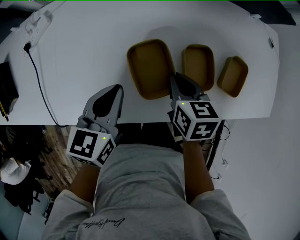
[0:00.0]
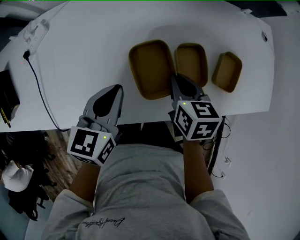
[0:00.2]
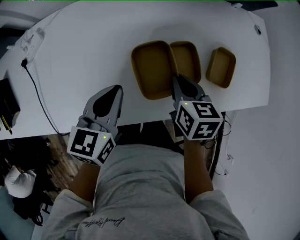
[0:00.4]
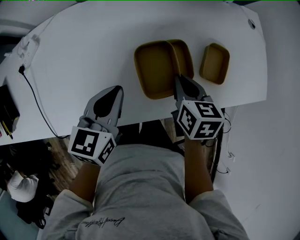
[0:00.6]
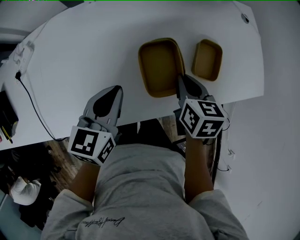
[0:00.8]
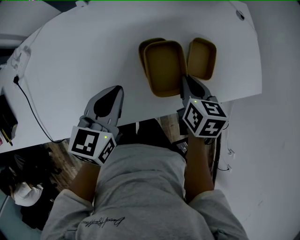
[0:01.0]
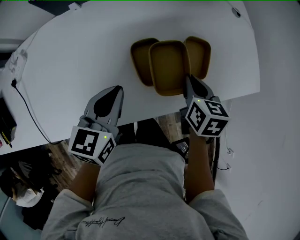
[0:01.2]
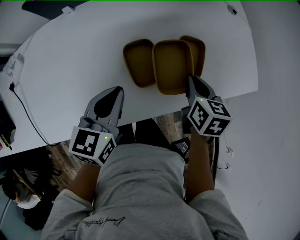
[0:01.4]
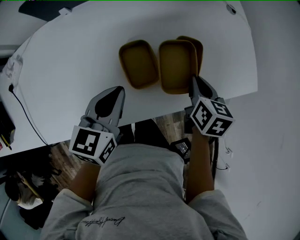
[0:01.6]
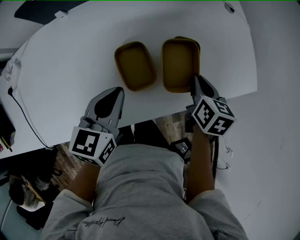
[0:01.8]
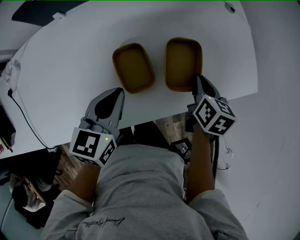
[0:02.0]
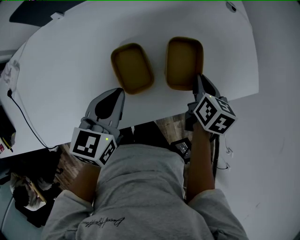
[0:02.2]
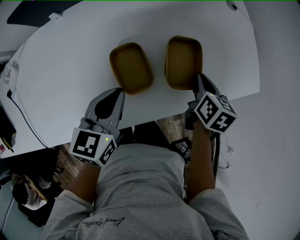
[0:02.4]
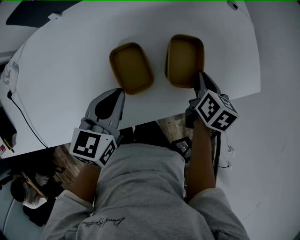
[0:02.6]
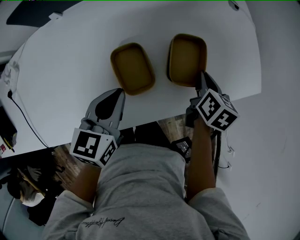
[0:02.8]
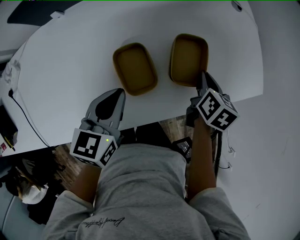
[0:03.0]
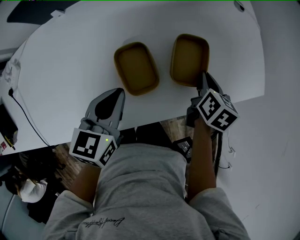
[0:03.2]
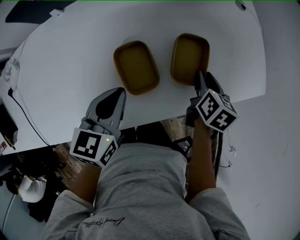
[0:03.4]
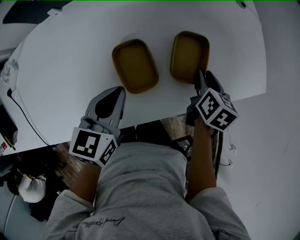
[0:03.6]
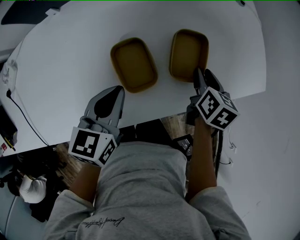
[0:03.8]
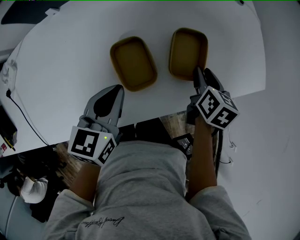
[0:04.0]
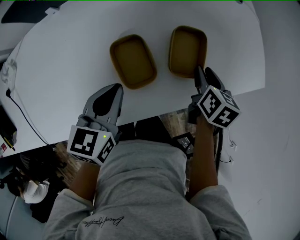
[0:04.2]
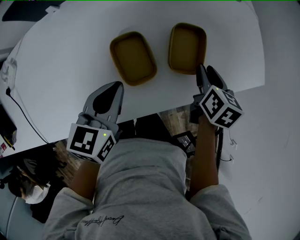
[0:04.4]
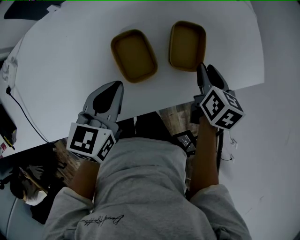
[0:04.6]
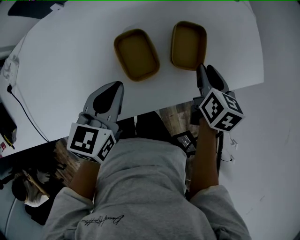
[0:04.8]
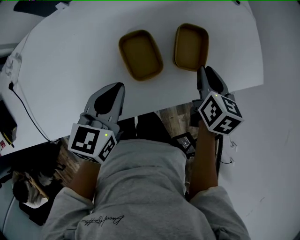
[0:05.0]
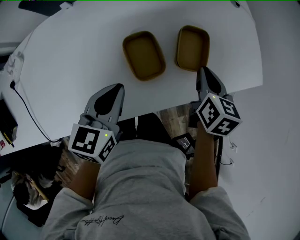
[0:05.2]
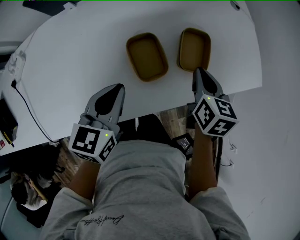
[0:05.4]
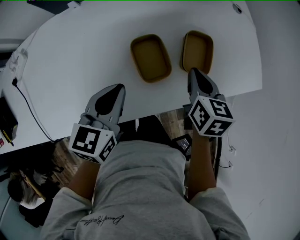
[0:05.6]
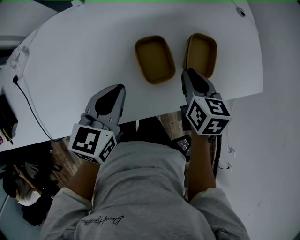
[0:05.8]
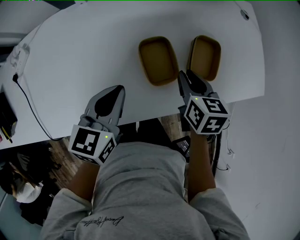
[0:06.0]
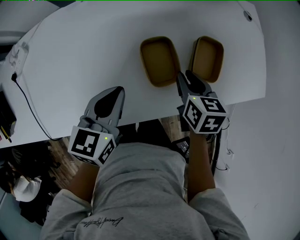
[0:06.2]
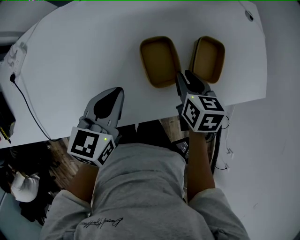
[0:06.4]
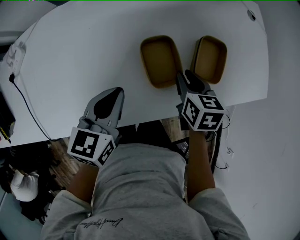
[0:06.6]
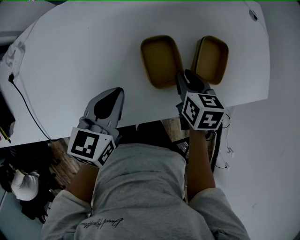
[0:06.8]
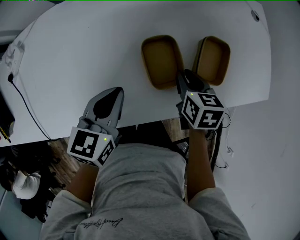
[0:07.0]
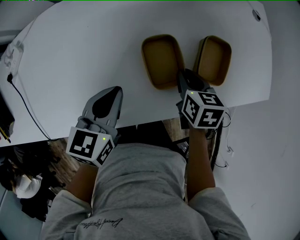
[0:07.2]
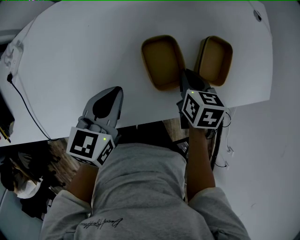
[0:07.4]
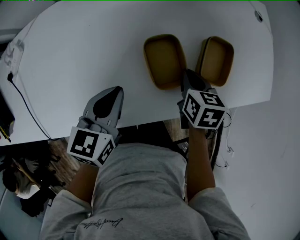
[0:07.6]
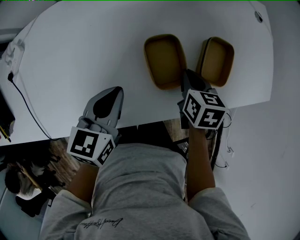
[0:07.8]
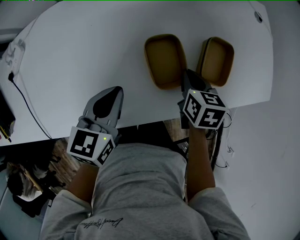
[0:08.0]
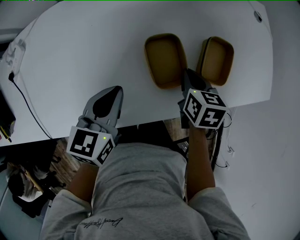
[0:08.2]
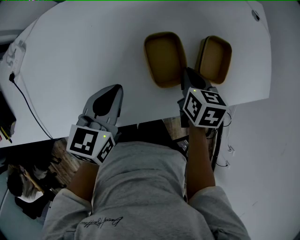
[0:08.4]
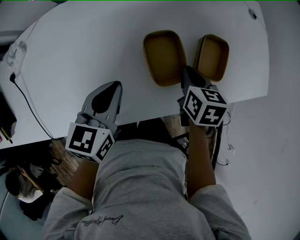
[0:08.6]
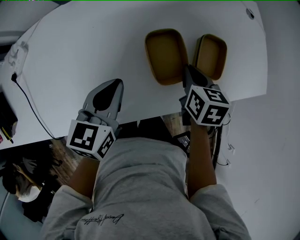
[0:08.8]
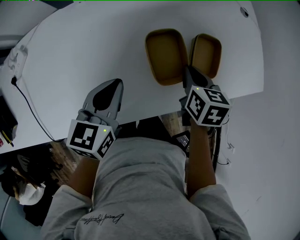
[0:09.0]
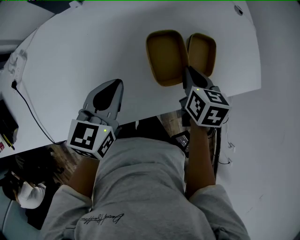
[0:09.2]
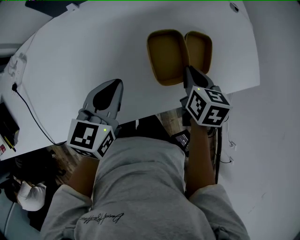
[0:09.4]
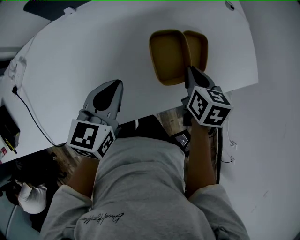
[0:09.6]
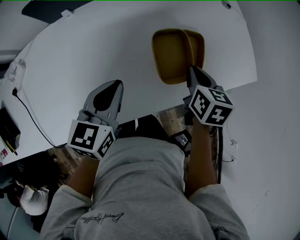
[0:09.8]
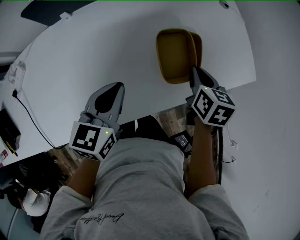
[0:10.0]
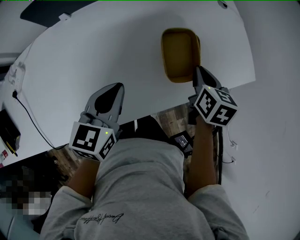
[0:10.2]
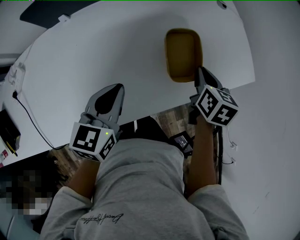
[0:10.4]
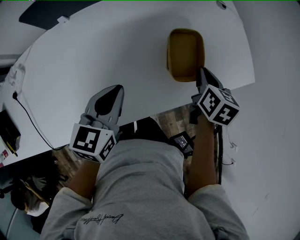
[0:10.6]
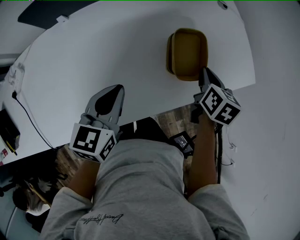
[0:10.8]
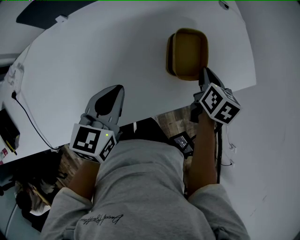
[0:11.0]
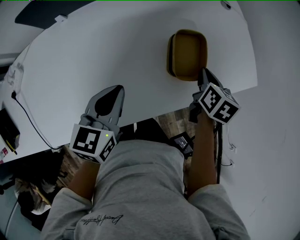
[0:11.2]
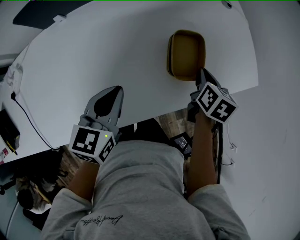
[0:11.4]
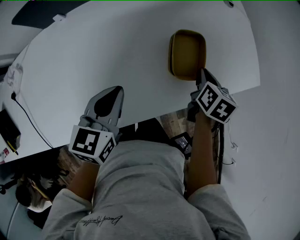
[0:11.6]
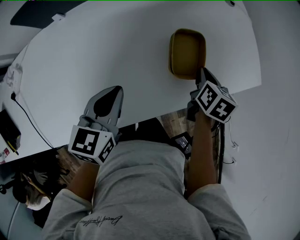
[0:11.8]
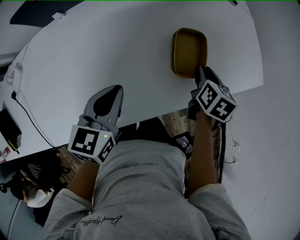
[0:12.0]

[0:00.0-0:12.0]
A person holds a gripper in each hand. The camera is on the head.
0:00.0 to 0:01.6: Both grippers travel together to the right, roughly 25 cm. The right gripper rotates some 30 degrees.
0:01.6 to 0:03.0: The right gripper ends up some 5 cm from where it was.
0:03.0 to 0:04.4: The right gripper opens up.
0:04.4 to 0:06.0: The right gripper shifts about 15 cm to the left, and closes, then reopens. Meanwhile the left gripper heads to the left, covering roughly 5 cm.
0:06.0 to 0:07.6: The right gripper travels downward by about 5 cm.
0:07.6 to 0:09.0: The right gripper heads upward, covering roughly 5 cm.
0:09.0 to 0:10.4: The right gripper heads to the right, covering some 10 cm. The left gripper moves to the right, some 5 cm.
0:10.4 to 0:12.0: The right gripper heads downward, covering some 5 cm, and opens its fingers.

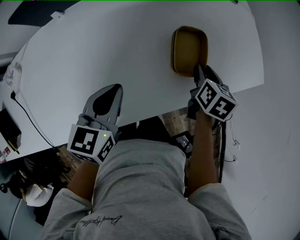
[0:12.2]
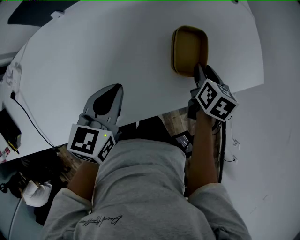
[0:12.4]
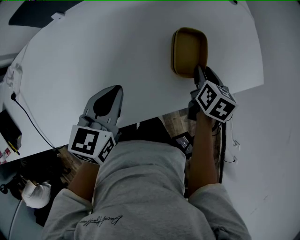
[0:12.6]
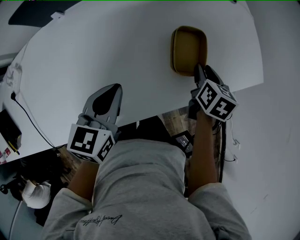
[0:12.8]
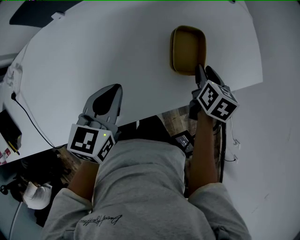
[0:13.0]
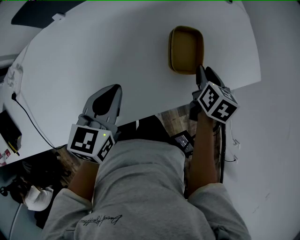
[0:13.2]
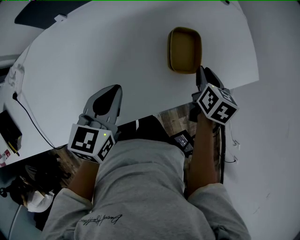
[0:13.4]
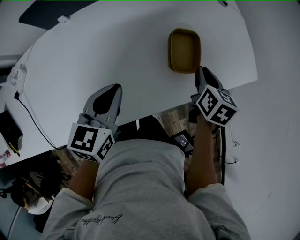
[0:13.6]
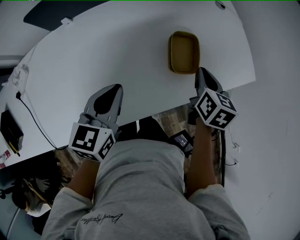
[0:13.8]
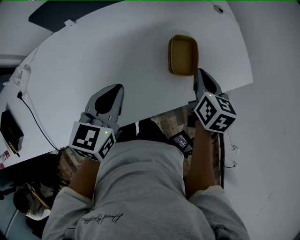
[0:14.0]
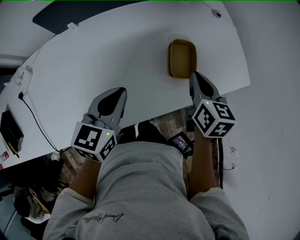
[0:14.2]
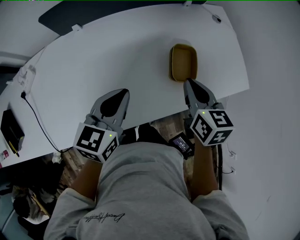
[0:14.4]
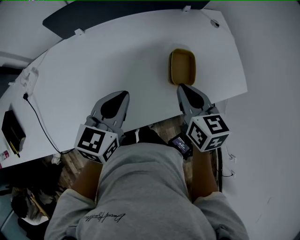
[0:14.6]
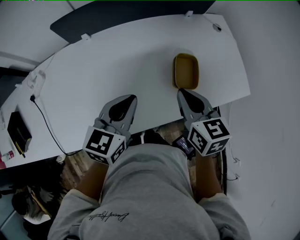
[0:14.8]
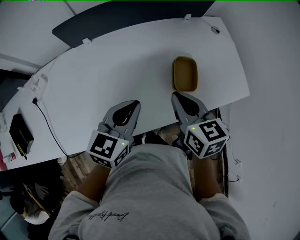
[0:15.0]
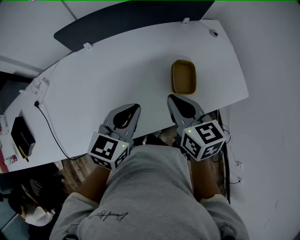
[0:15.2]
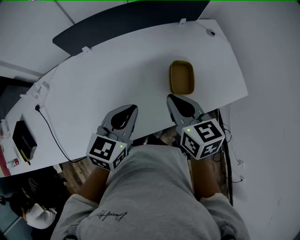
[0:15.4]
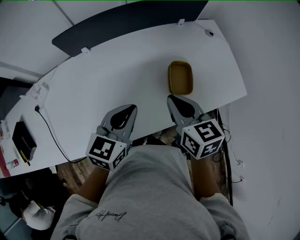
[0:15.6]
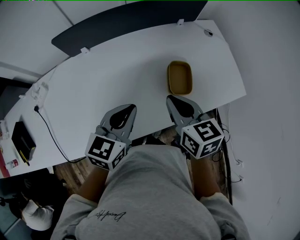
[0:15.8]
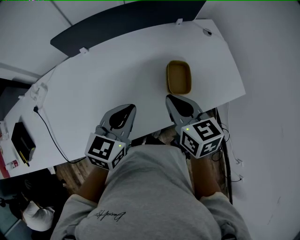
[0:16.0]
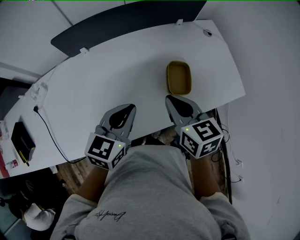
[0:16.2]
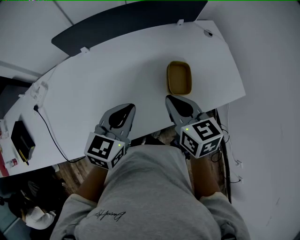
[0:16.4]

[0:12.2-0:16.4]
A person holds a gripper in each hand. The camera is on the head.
0:12.2 to 0:13.6: The right gripper heads upward, covering roughly 5 cm.
0:13.6 to 0:15.0: The left gripper is displaced upward by approximately 5 cm. Meanwhile the right gripper heads to the left, upward and backward, covering roughly 20 cm, and swivels about 30 degrees.
0:15.0 to 0:16.4: There are only small adjustments of the grippers.

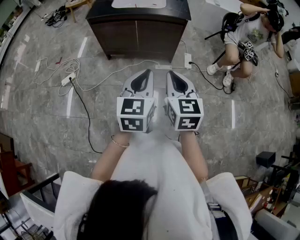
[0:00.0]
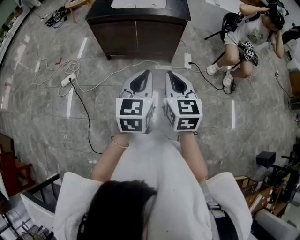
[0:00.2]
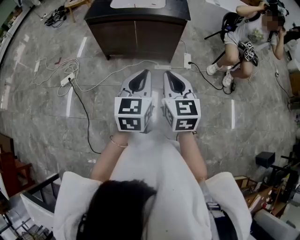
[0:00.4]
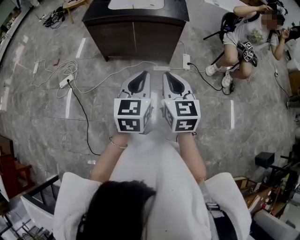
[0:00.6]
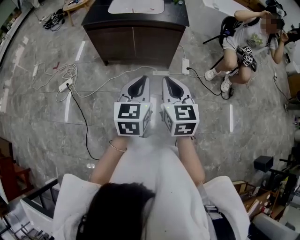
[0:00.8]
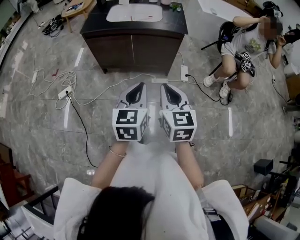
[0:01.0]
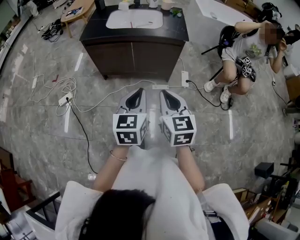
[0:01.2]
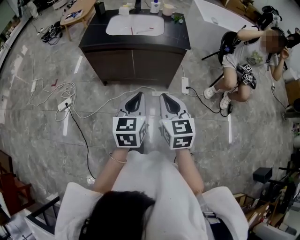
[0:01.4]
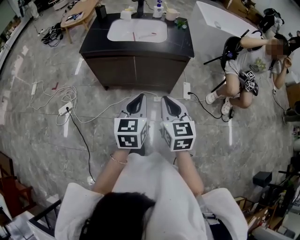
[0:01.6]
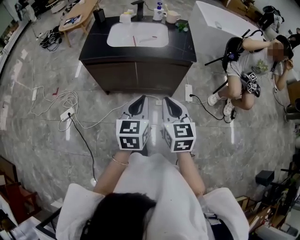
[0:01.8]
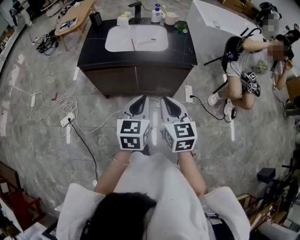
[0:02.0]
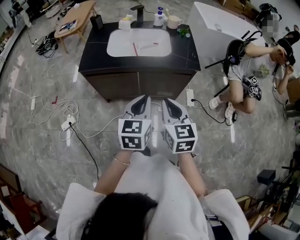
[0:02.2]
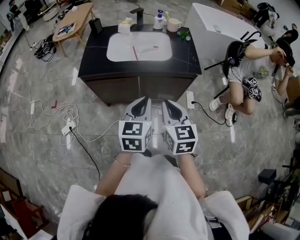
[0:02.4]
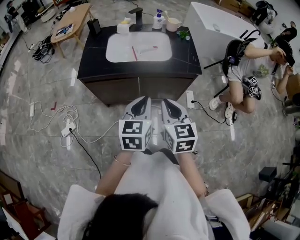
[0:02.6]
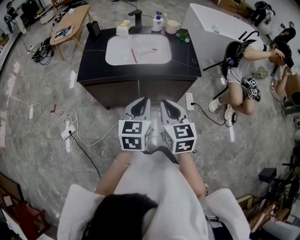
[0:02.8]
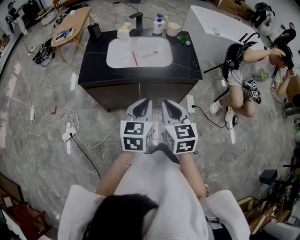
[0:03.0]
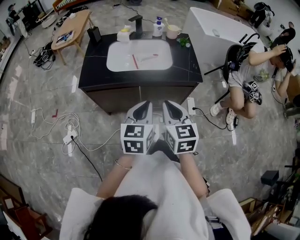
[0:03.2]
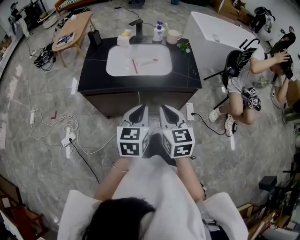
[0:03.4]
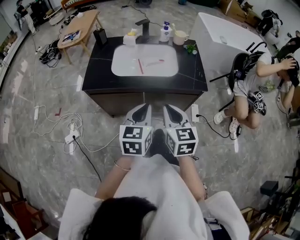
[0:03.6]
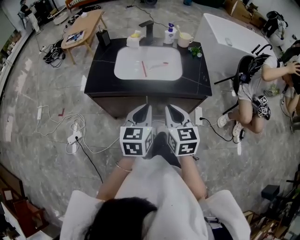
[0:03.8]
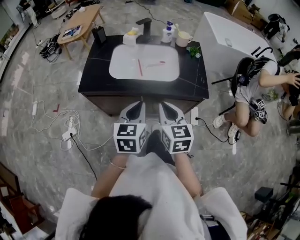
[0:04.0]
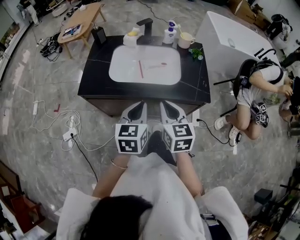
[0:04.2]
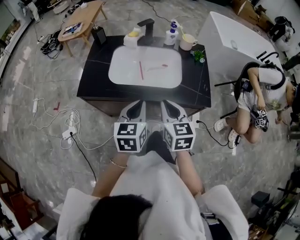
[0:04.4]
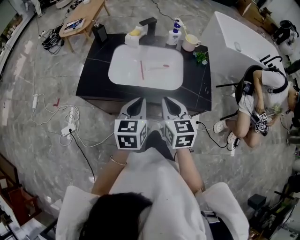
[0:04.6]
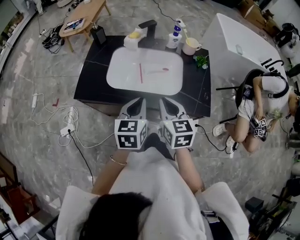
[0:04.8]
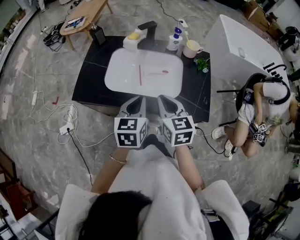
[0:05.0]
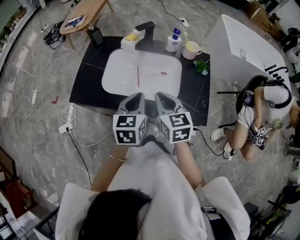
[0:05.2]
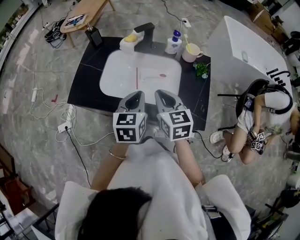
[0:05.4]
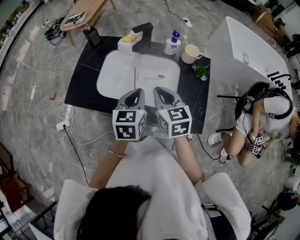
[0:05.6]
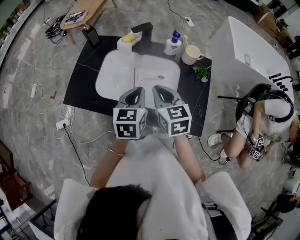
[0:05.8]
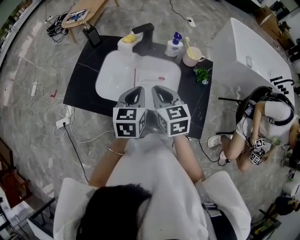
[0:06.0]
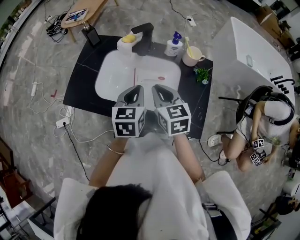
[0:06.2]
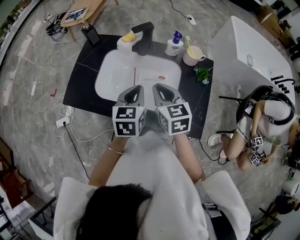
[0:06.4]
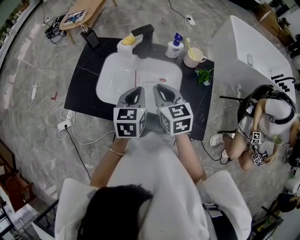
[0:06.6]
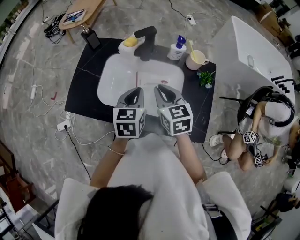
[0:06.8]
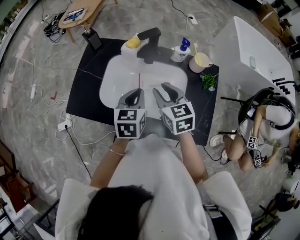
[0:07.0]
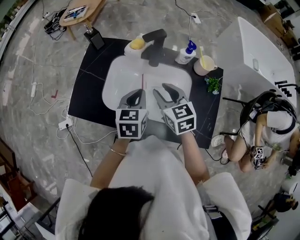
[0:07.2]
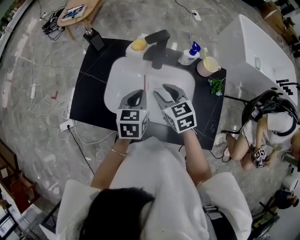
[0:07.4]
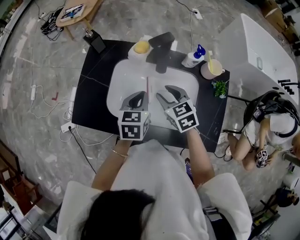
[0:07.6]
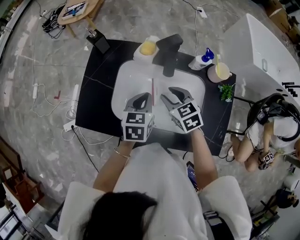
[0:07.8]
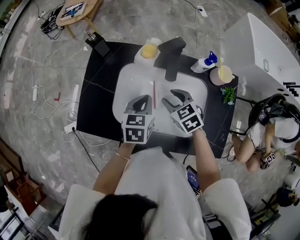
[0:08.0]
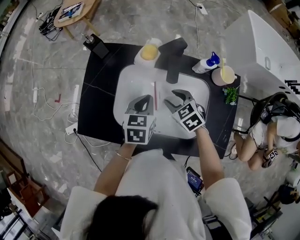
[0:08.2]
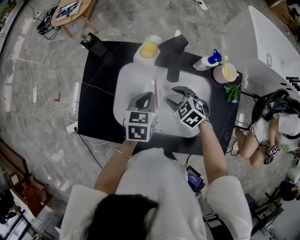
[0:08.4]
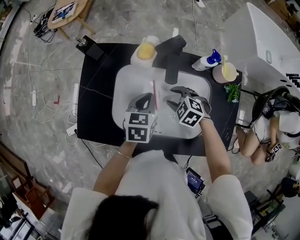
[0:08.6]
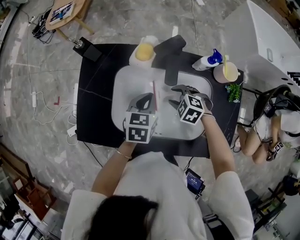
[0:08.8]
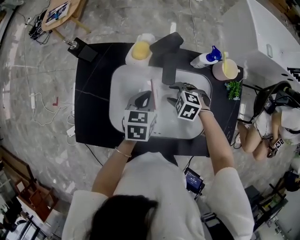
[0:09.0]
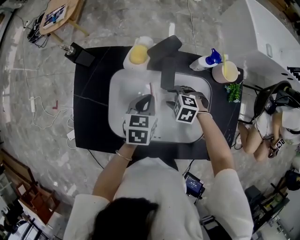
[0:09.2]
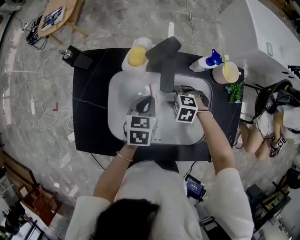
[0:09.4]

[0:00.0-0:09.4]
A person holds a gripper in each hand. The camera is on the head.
0:00.0 to 0:01.6: The grippers both shift forward by roughly 20 cm.
0:01.6 to 0:03.2: The grippers both shift forward by some 20 cm.
0:03.2 to 0:04.8: Both grippers travel together forward, about 20 cm.
0:04.8 to 0:06.2: The left gripper is displaced forward and to the right by some 15 cm, while the right gripper shifts roughly 15 cm forward.
0:06.2 to 0:07.8: The two grippers go approximately 15 cm forward, downward and to the left. The right gripper swivels some 20 degrees, and opens.
0:07.8 to 0:09.4: The left gripper heads downward, covering roughly 10 cm, while the right gripper goes approximately 15 cm downward, and changes its angle by about 50 degrees.
